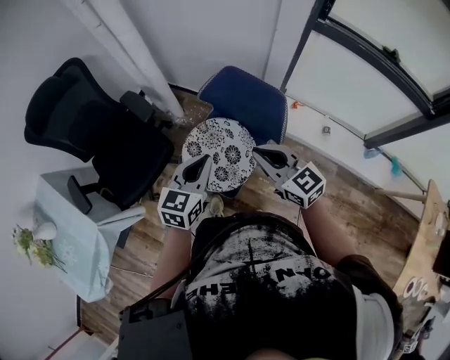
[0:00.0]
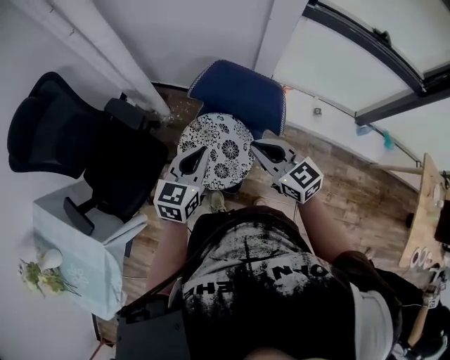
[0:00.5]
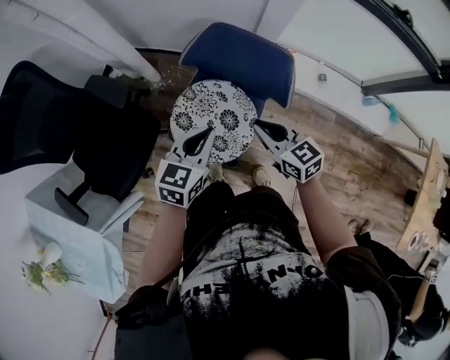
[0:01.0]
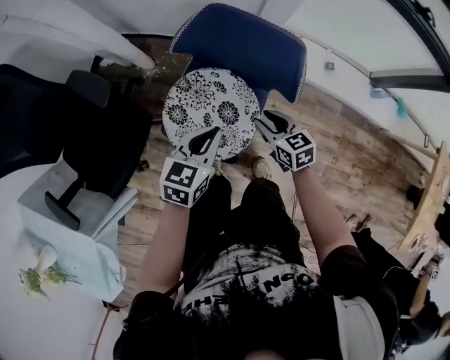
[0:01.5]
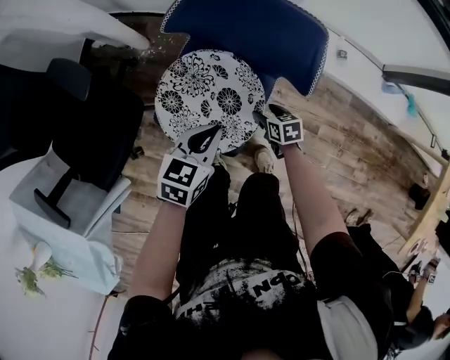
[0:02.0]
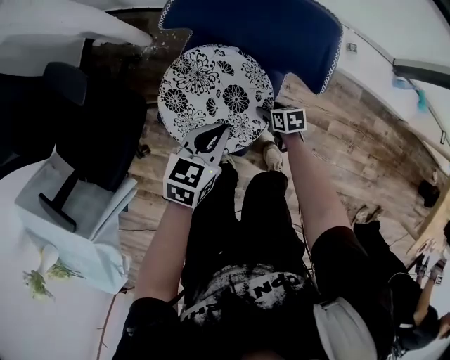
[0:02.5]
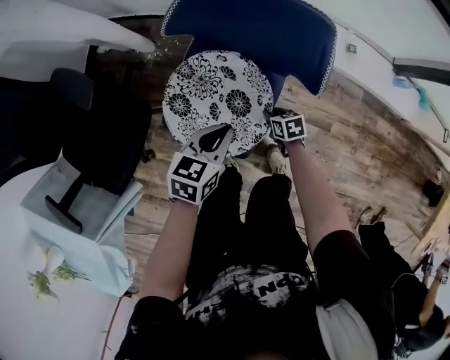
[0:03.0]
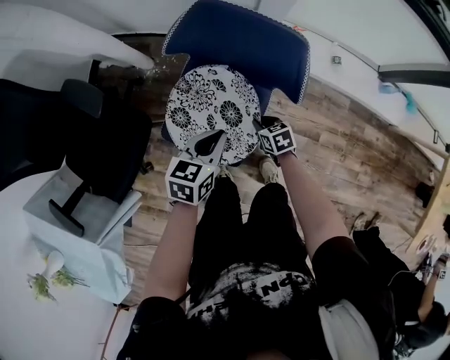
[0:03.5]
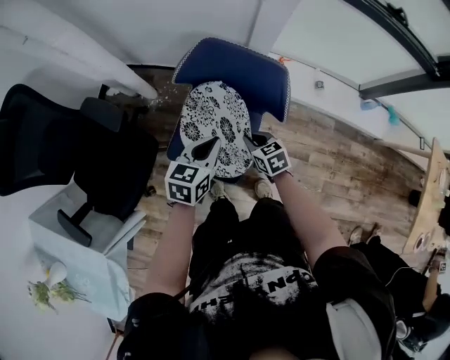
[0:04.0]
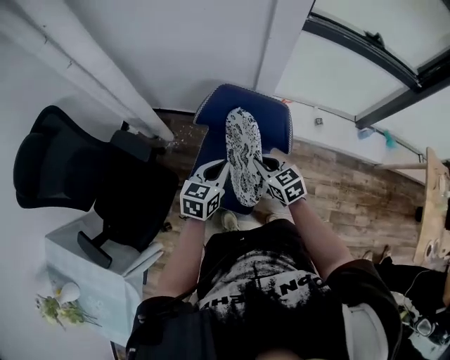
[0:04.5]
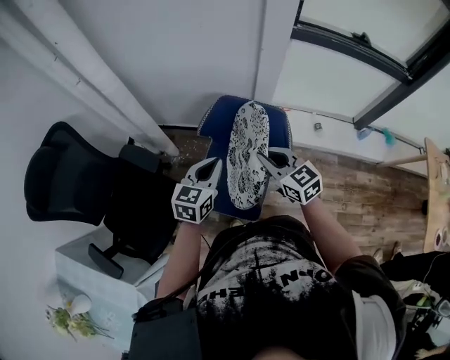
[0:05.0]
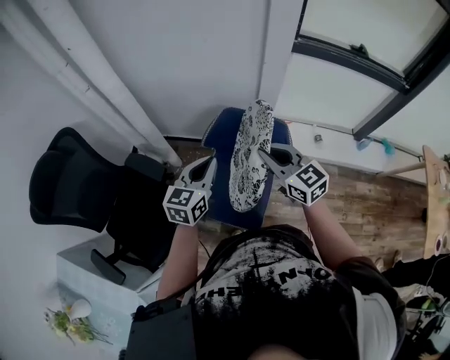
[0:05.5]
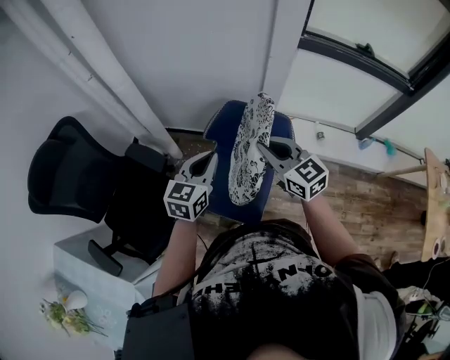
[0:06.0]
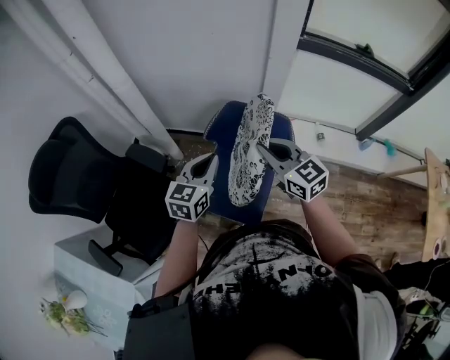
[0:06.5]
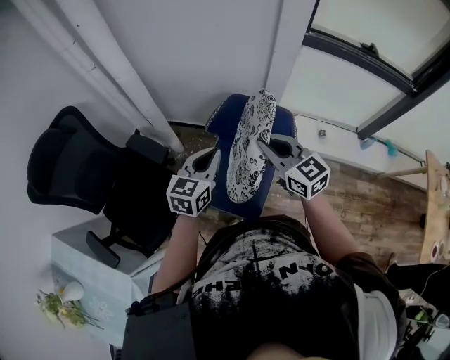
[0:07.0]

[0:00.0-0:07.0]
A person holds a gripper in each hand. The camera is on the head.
0:00.0 to 0:02.0: The left gripper heads downward, covering some 25 cm, and turns by about 30 degrees, while the right gripper heads downward, covering roughly 50 cm, tilts its fingers roughly 50 degrees downward, and opens up.
0:02.0 to 0:03.5: The right gripper closes up.
0:03.5 to 0:05.0: The left gripper is displaced upward by about 20 cm, and rotates roughly 20 degrees; the right gripper goes approximately 40 cm upward, and tips its fingers upward by about 40 degrees.
0:05.0 to 0:07.0: The left gripper moves approximately 5 cm; the right gripper travels upward by roughly 10 cm.

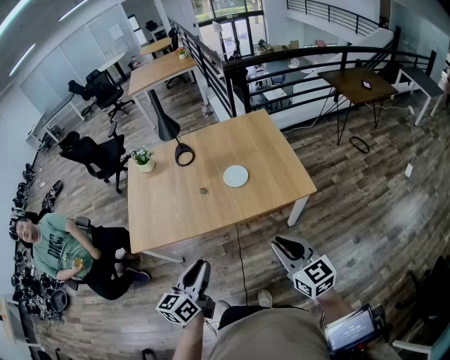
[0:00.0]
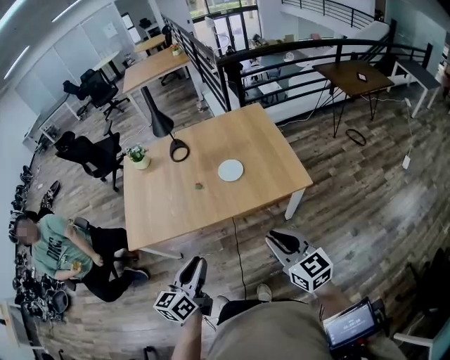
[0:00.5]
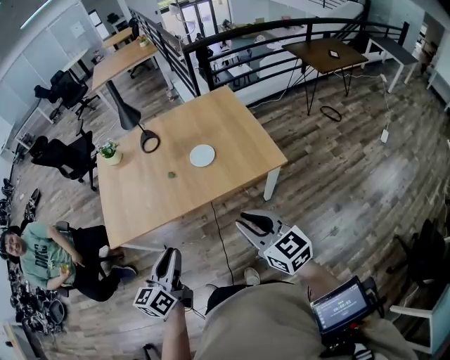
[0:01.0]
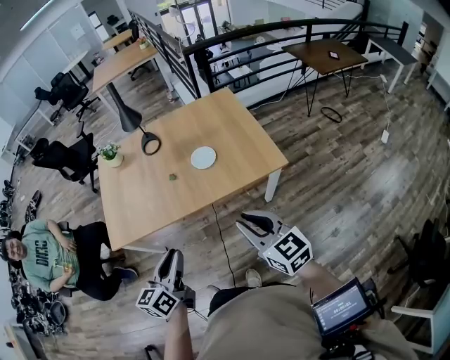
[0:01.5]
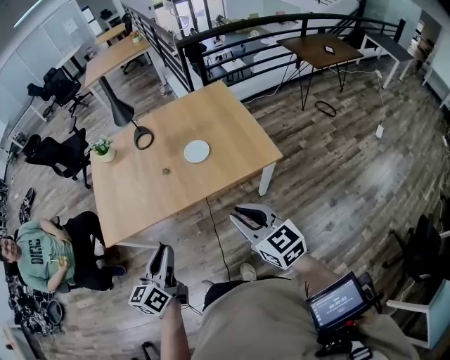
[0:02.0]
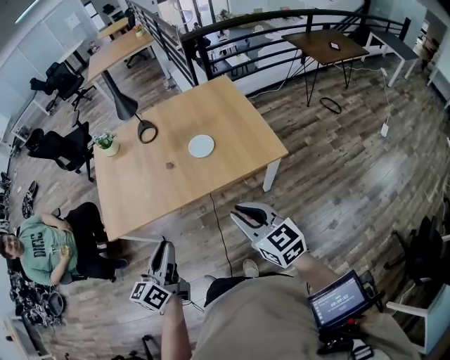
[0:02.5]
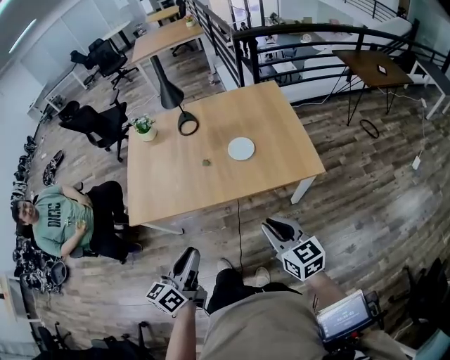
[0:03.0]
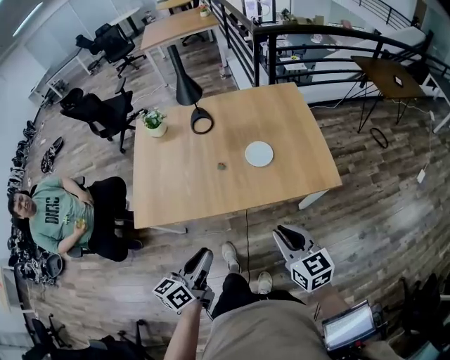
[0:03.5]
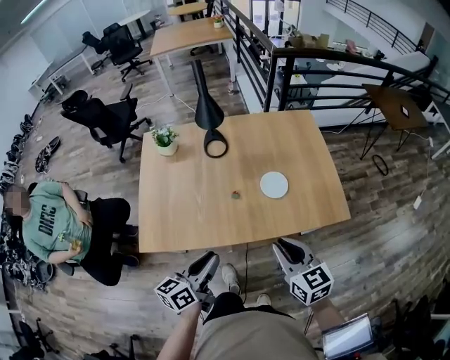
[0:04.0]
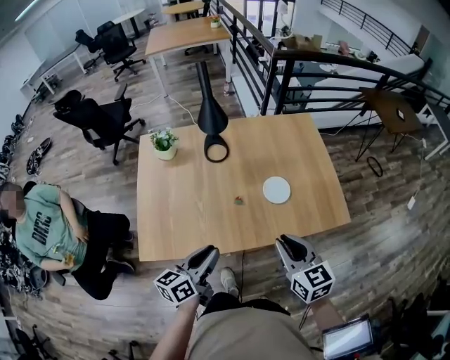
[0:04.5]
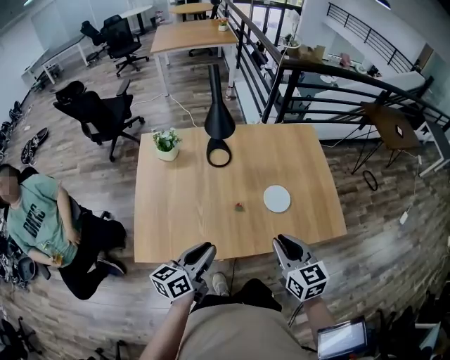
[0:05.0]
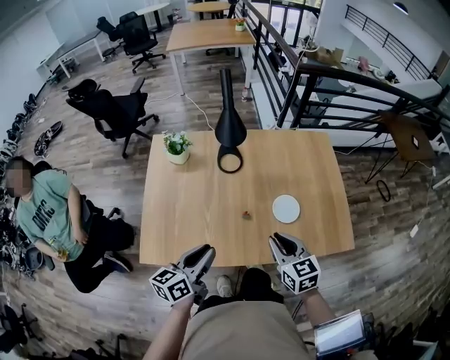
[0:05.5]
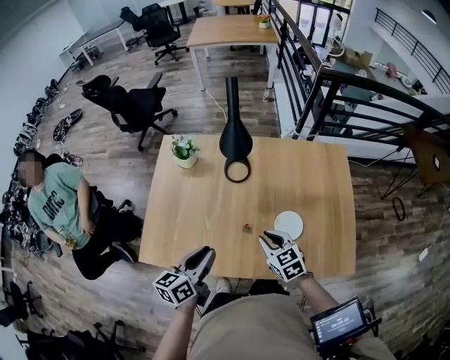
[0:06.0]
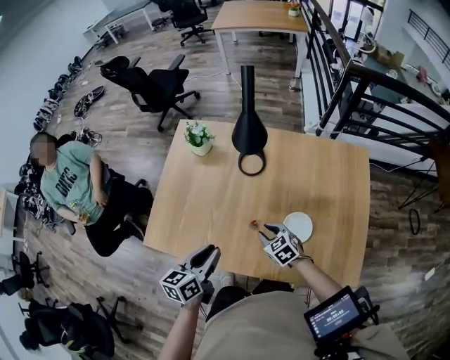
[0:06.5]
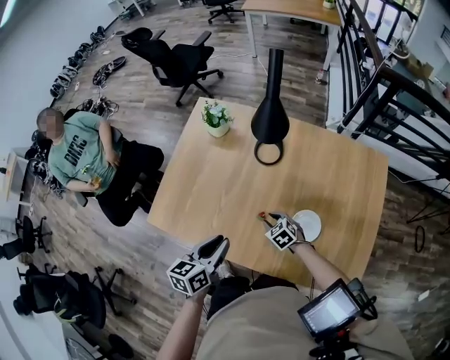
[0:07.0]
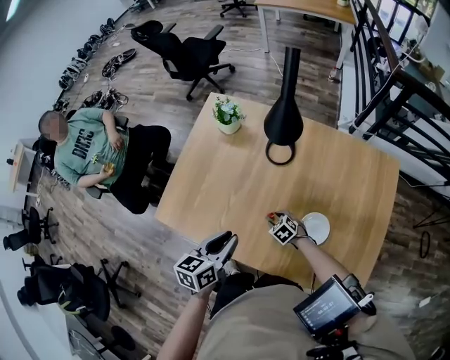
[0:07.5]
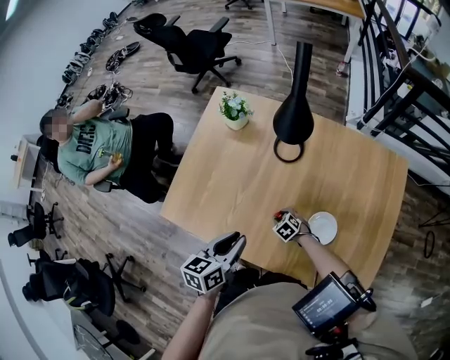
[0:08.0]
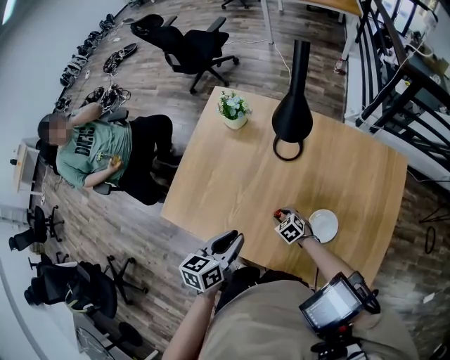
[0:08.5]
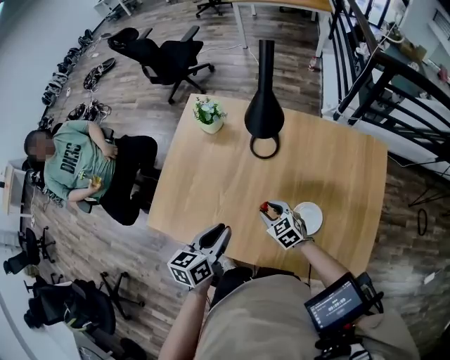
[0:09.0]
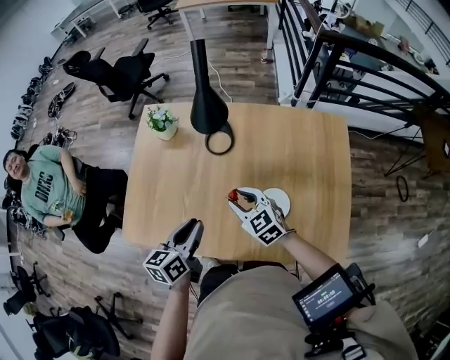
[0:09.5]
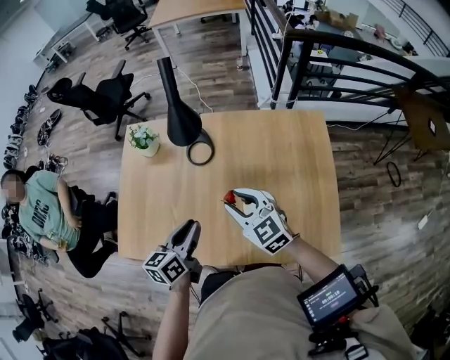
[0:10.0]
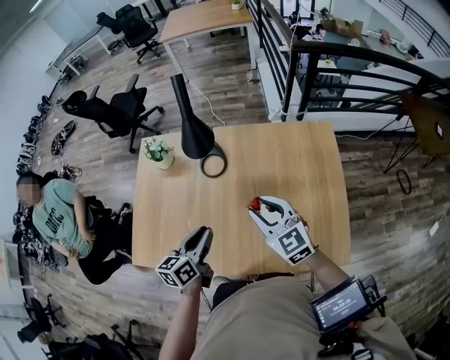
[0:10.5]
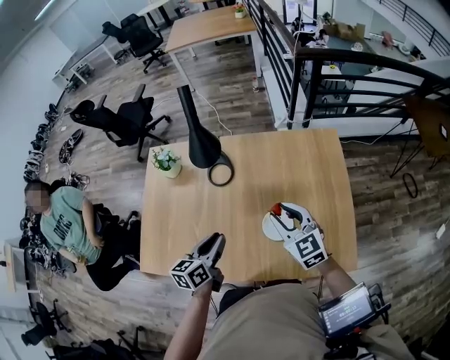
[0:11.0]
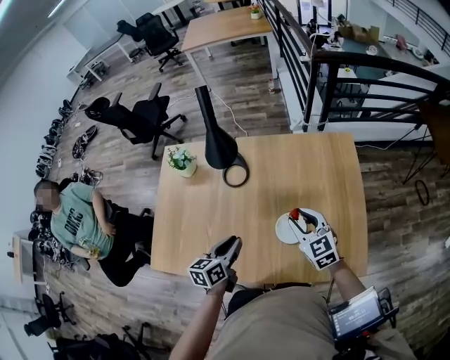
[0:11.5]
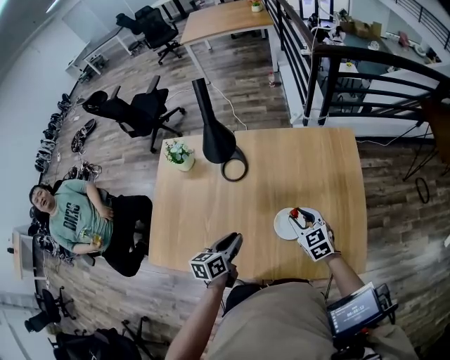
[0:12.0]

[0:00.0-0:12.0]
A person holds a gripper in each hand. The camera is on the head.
0:00.0 to 0:02.0: The grippers stay close to where they were, moving slightly.
0:02.0 to 0:04.0: The two grippers go some 20 cm forward and to the left.
0:04.0 to 0:06.0: The right gripper shifts approximately 25 cm forward and downward, and turns by approximately 30 degrees. Meanwhile the left gripper is displaced forward by some 20 cm.
0:06.0 to 0:08.0: The right gripper heads downward, covering some 30 cm, turns by about 40 degrees, and opens up. The left gripper travels downward by roughly 5 cm.
0:08.0 to 0:10.0: The right gripper travels upward by roughly 35 cm, and tilts its fingers roughly 40 degrees upward; the left gripper goes about 10 cm to the right.
0:10.0 to 0:12.0: The right gripper moves downward and to the right, some 15 cm. The left gripper heads downward, covering about 10 cm.

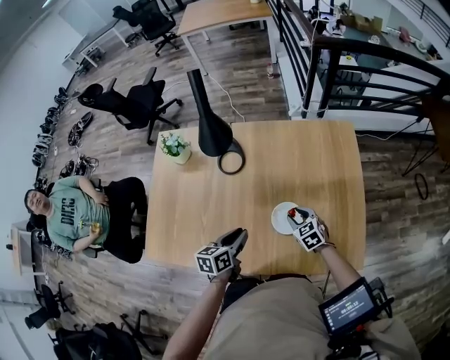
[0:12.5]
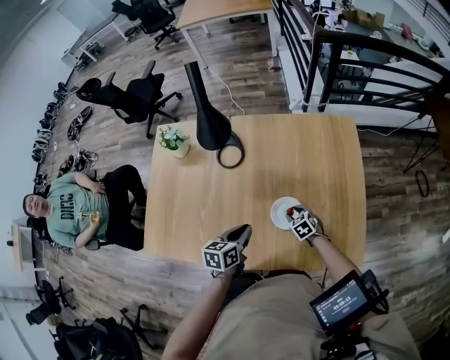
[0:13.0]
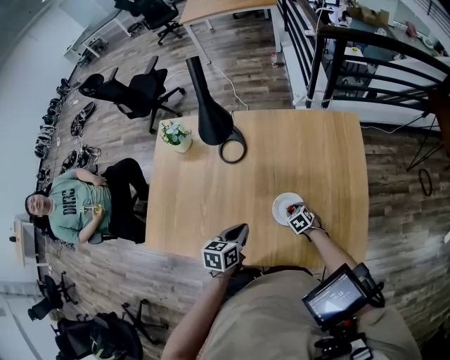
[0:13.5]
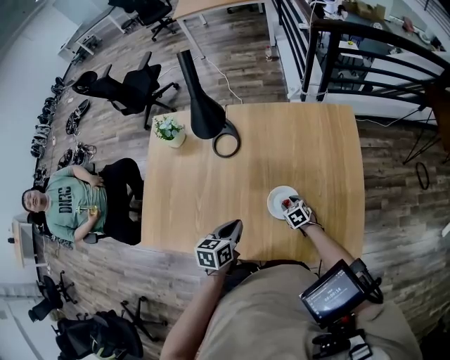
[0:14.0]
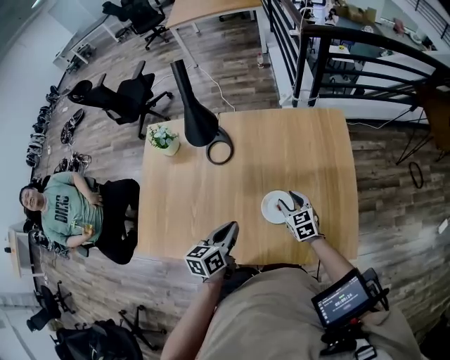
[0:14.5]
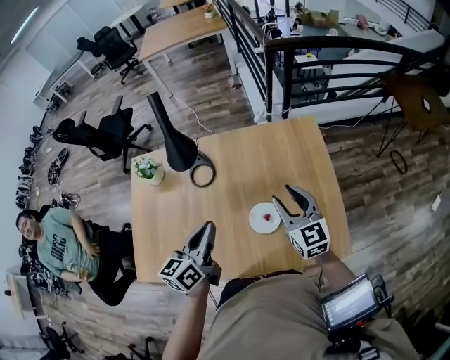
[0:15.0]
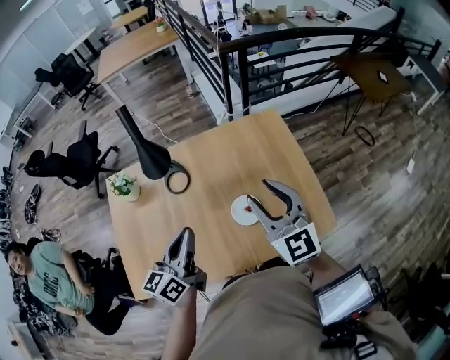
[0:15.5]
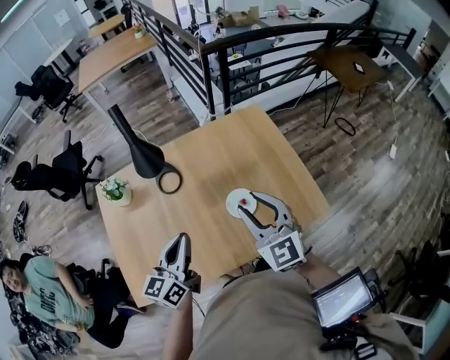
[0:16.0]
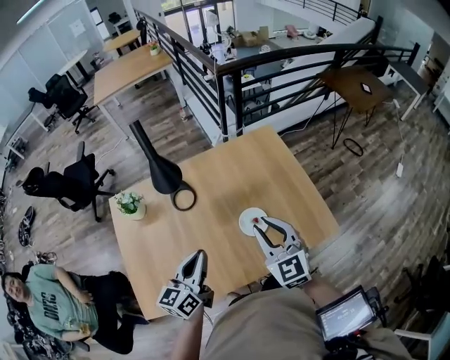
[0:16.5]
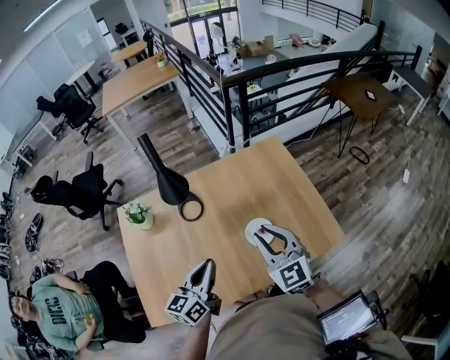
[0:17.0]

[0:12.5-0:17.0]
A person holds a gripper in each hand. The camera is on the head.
0:12.5 to 0:14.5: The right gripper moves about 15 cm downward and comes back. The left gripper moves about 5 cm.
0:14.5 to 0:17.0: The right gripper is displaced upward by about 30 cm, and swivels roughly 30 degrees, while the left gripper shifts approximately 15 cm upward and to the left, and rotates approximately 30 degrees.

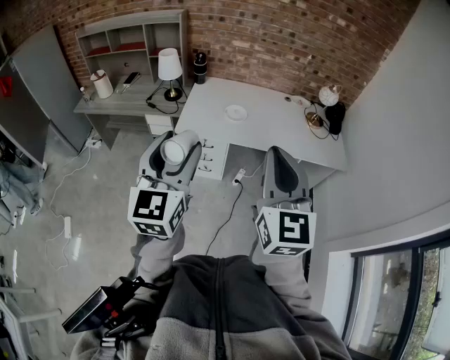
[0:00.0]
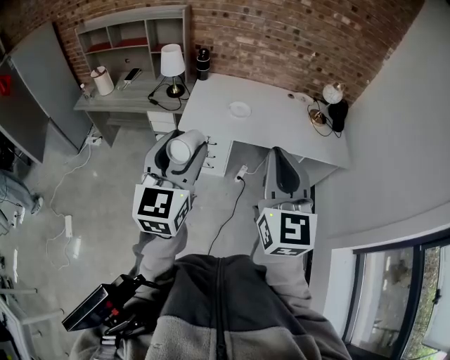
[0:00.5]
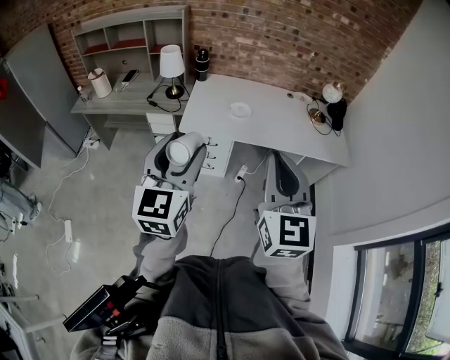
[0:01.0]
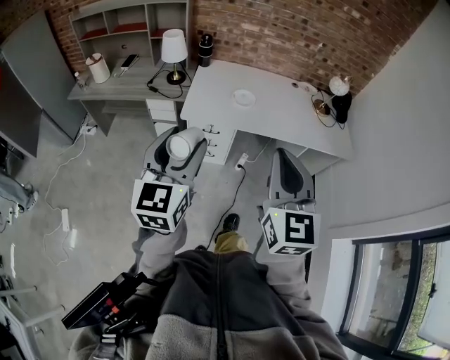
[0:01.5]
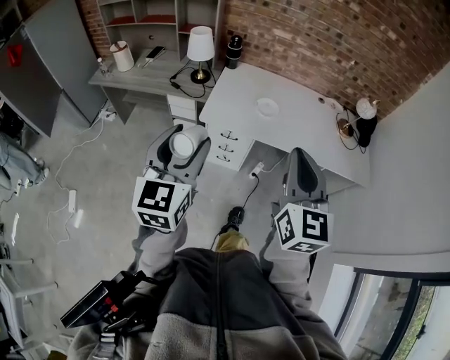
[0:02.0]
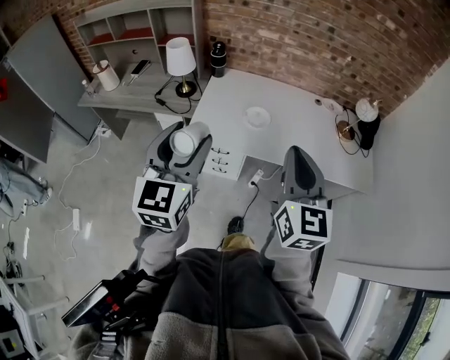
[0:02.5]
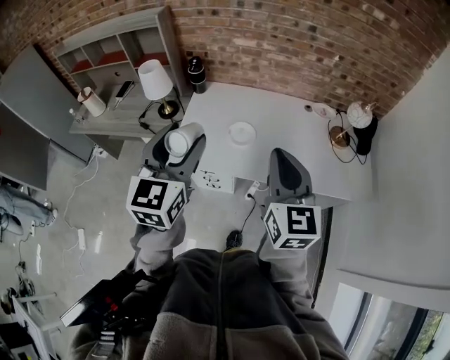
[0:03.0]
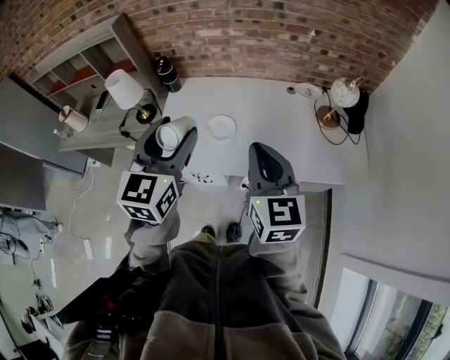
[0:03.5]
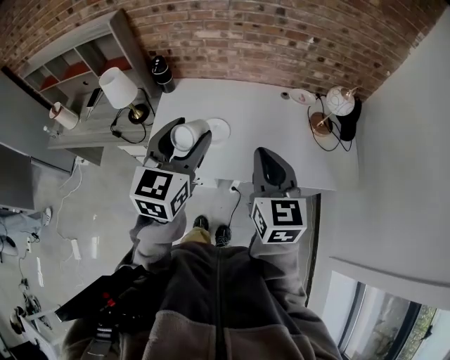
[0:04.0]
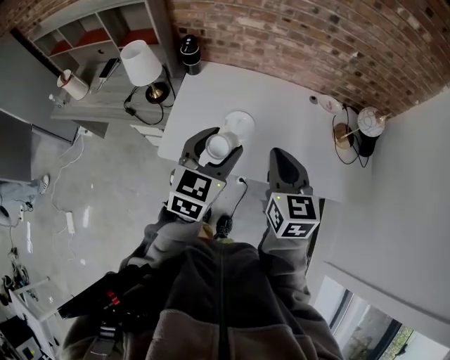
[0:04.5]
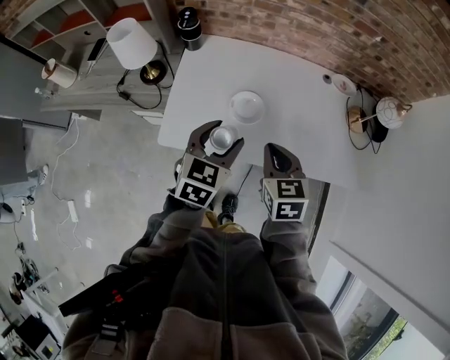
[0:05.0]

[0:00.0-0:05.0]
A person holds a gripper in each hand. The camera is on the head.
0:00.0 to 0:02.5: The grippers both shift forward by some 20 cm.
0:02.5 to 0:05.0: The grippers both shift forward and downward by some 35 cm. The right gripper points its fingers roughly 40 degrees further downward, while the left gripper turns by some 30 degrees.
